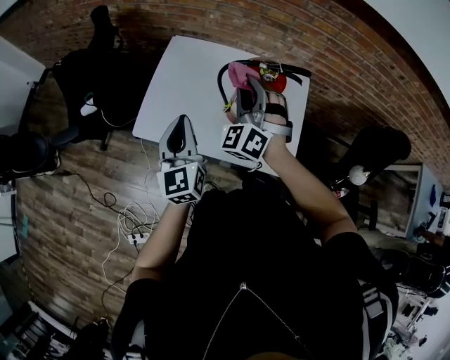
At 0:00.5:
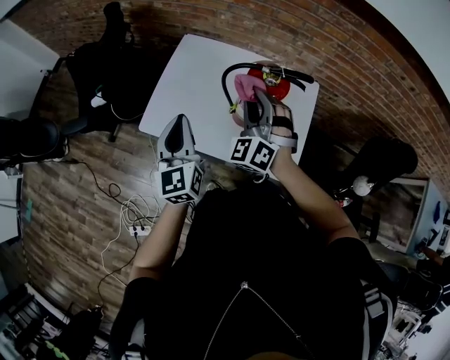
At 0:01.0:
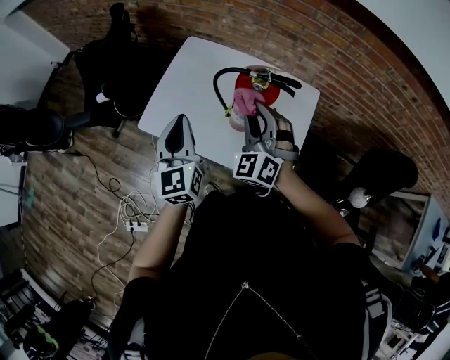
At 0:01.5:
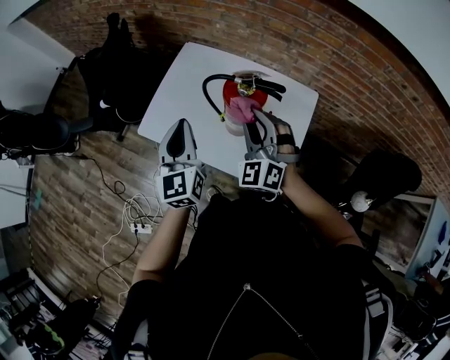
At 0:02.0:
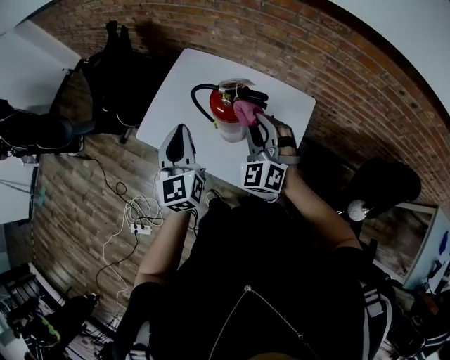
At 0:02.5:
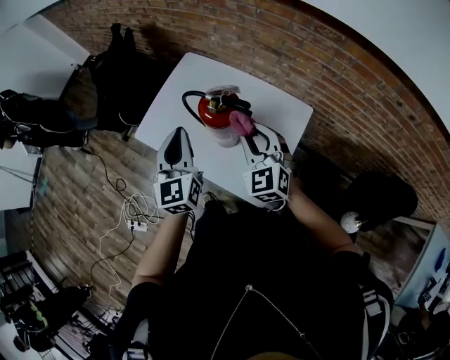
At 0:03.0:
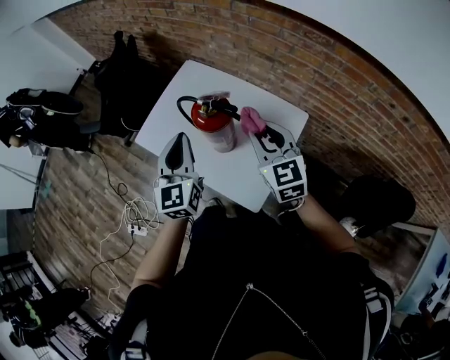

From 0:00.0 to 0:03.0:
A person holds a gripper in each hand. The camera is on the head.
From 0:00.0 to 0:01.5: Both grippers move to the right, roughly 10 cm. The right gripper swivels about 20 degrees.
From 0:01.5 to 0:03.0: The two grippers go approximately 15 cm to the right. The right gripper turns by approximately 40 degrees.

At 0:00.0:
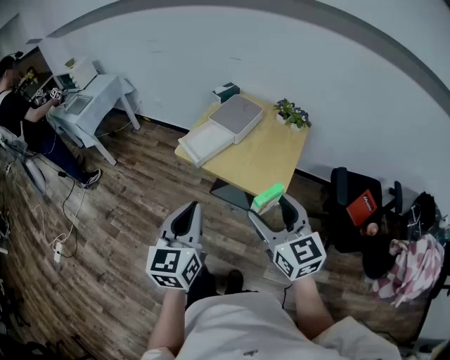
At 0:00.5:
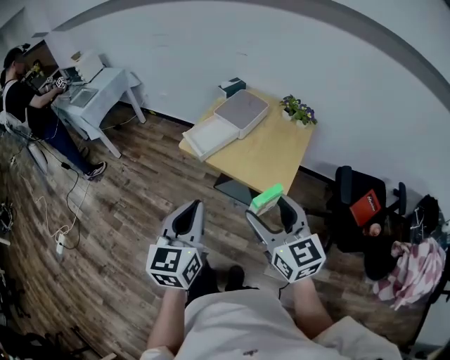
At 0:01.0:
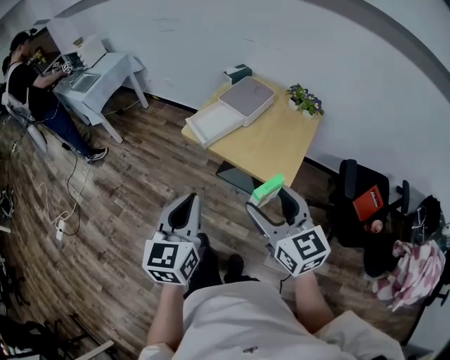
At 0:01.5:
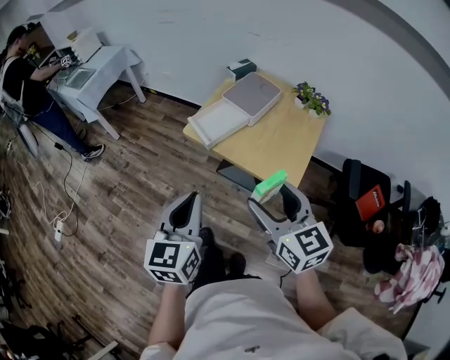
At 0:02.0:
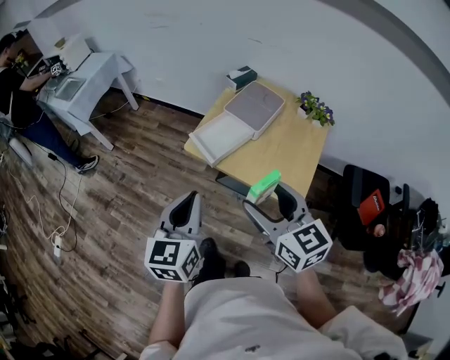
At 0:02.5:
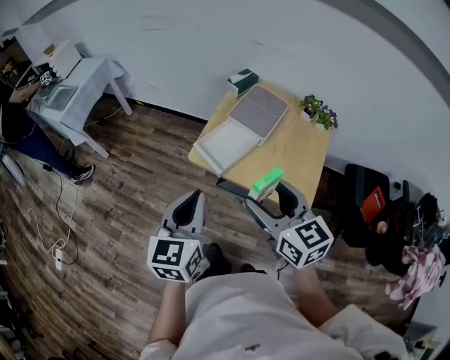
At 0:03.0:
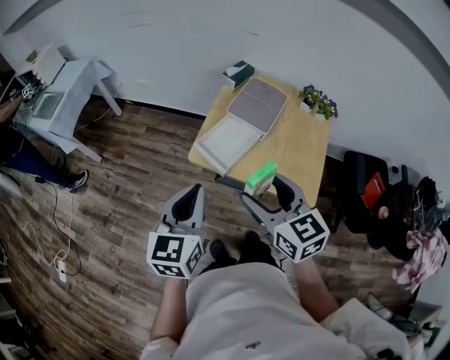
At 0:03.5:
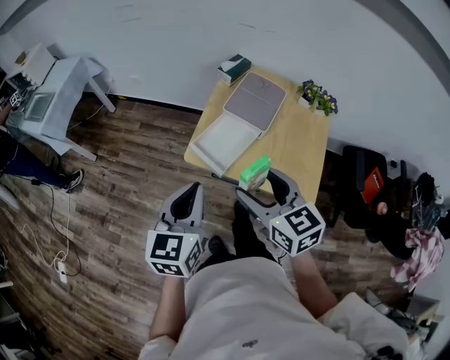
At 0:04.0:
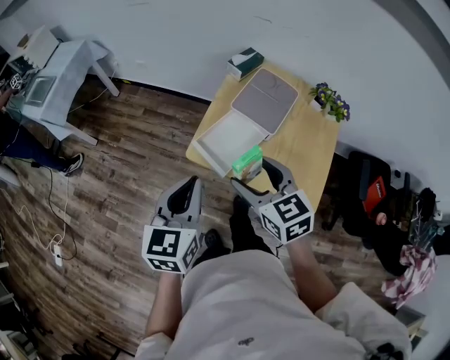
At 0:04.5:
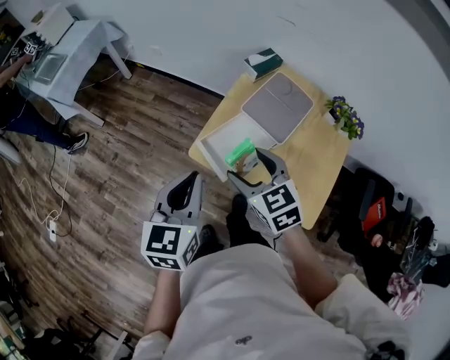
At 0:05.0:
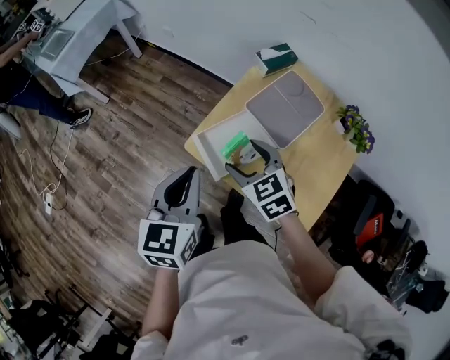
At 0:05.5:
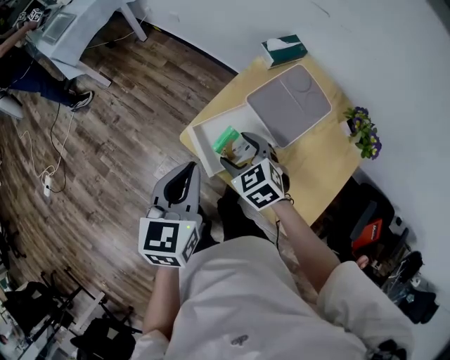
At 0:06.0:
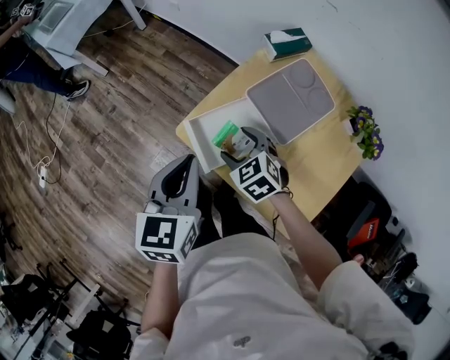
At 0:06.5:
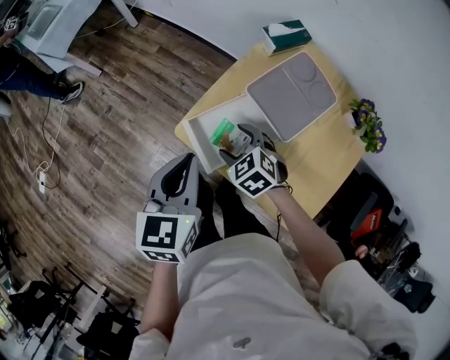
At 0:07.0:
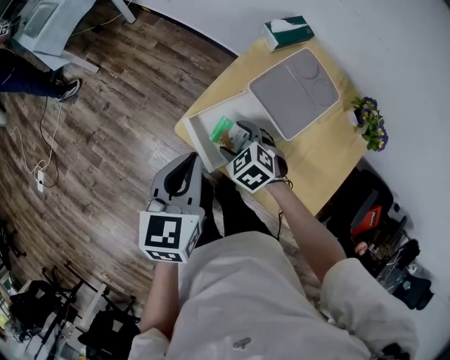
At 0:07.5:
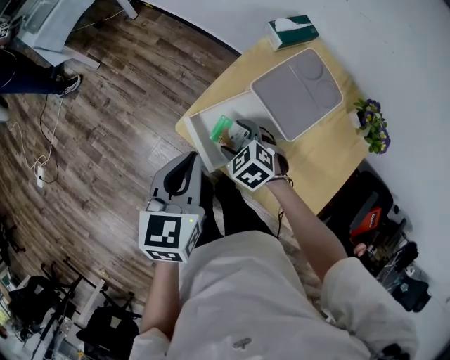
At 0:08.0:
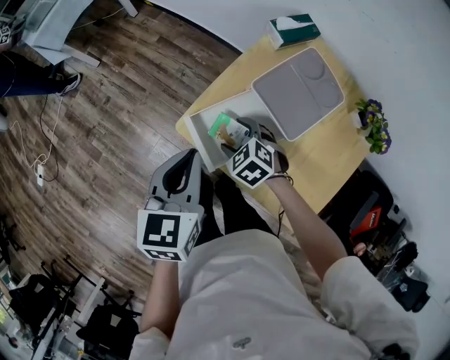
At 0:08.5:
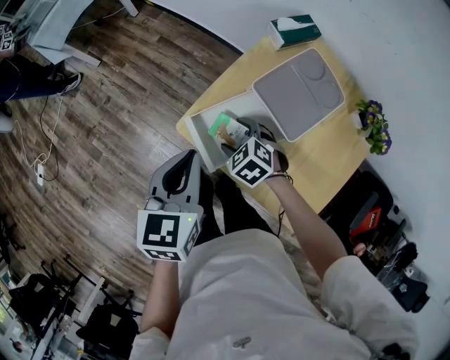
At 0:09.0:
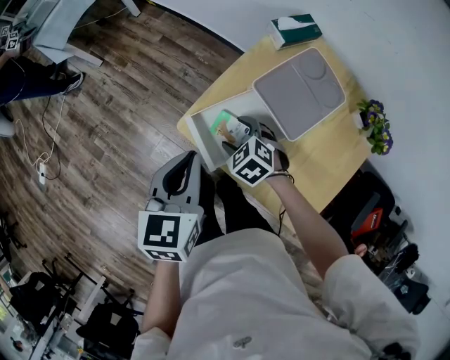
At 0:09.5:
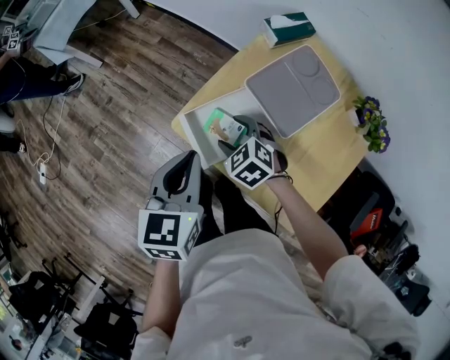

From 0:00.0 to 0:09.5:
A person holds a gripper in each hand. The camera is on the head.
From 0:00.0 to 0:02.0: Both grippers travel together forward and to the left, roughly 15 cm.
From 0:02.0 to 0:04.0: The right gripper shifts some 20 cm forward, downward and to the left; the left gripper is displaced forward by approximately 15 cm.
From 0:04.0 to 0:05.5: The right gripper travels downward and forward by about 20 cm, and rotates some 30 degrees; the left gripper shifts roughly 10 cm to the right and forward, and swivels approximately 20 degrees.
From 0:05.5 to 0:07.5: The right gripper travels downward by roughly 10 cm; the left gripper moves some 5 cm.
From 0:07.5 to 0:09.5: The grippers stay close to where they were, moving slightly.

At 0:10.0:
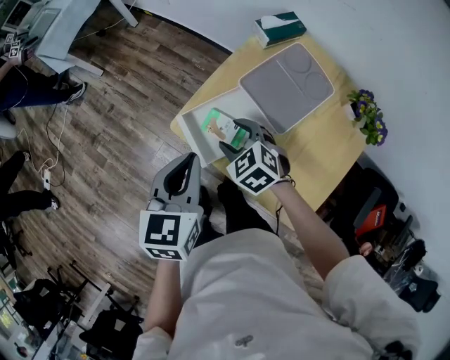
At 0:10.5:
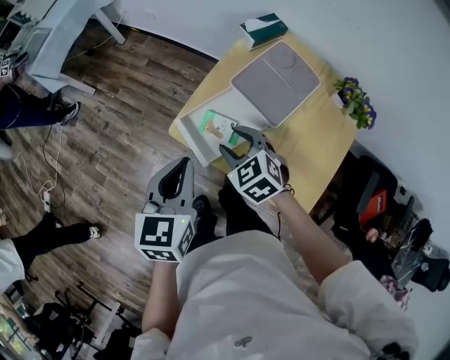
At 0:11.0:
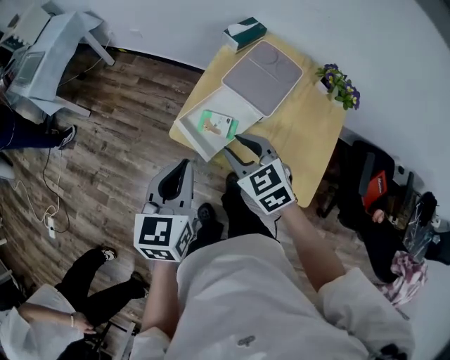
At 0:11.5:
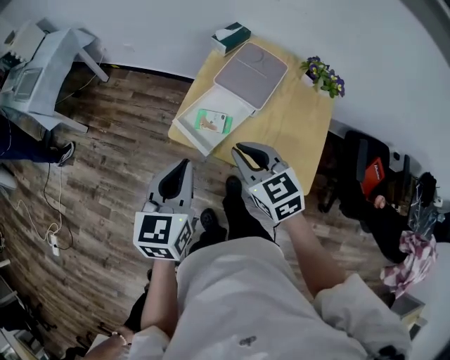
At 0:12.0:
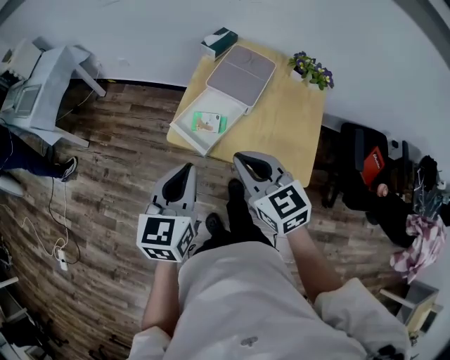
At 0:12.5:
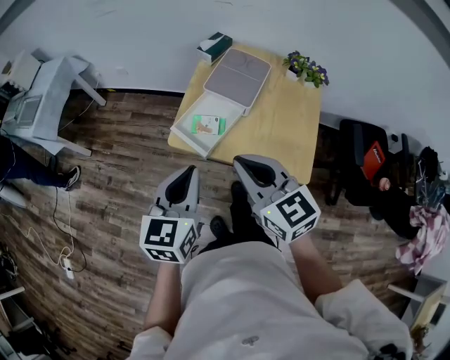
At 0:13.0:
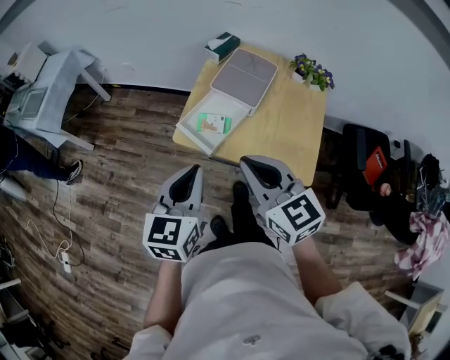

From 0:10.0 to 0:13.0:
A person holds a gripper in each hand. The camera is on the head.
From 0:10.0 to 0:11.5: The right gripper moves upward and backward, about 20 cm, rotates approximately 40 degrees, and closes up, while the left gripper heads backward and upward, covering roughly 10 cm, and turns by approximately 20 degrees.
From 0:11.5 to 0:13.0: The right gripper shifts some 10 cm upward and backward.

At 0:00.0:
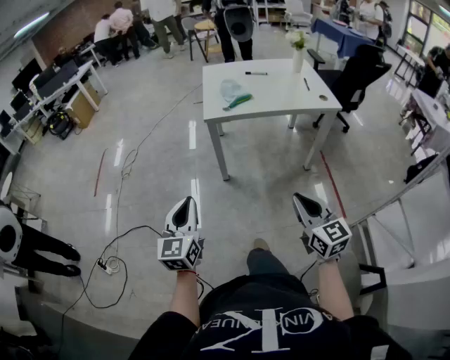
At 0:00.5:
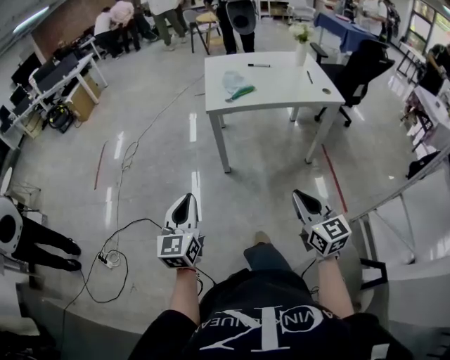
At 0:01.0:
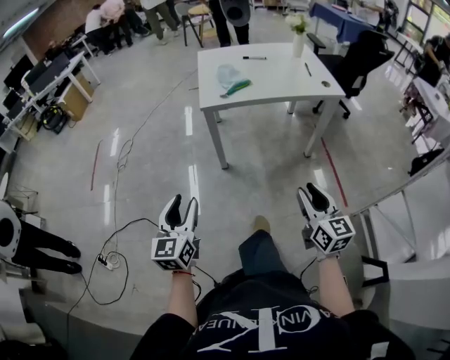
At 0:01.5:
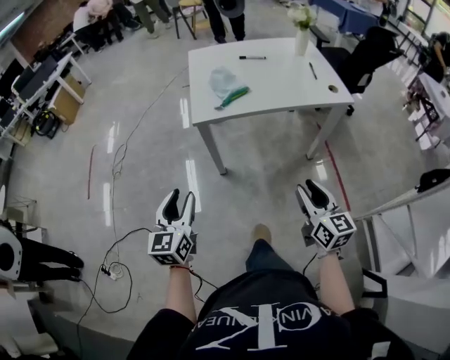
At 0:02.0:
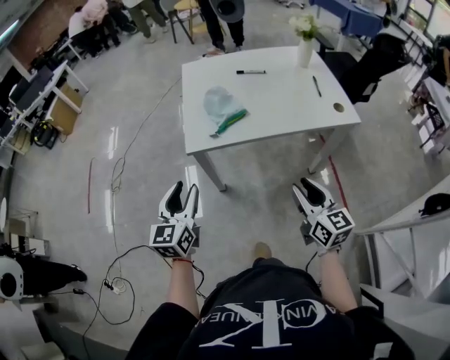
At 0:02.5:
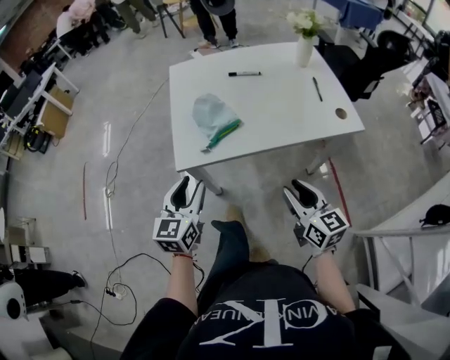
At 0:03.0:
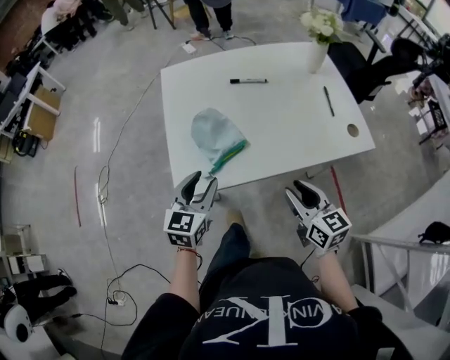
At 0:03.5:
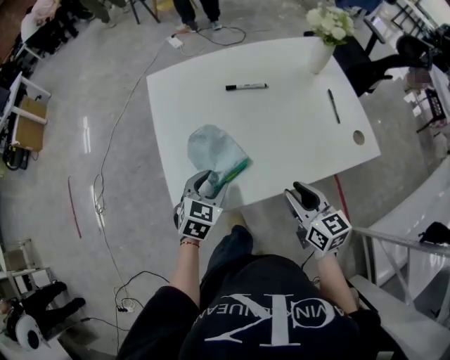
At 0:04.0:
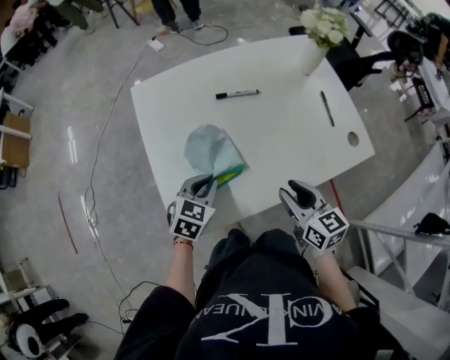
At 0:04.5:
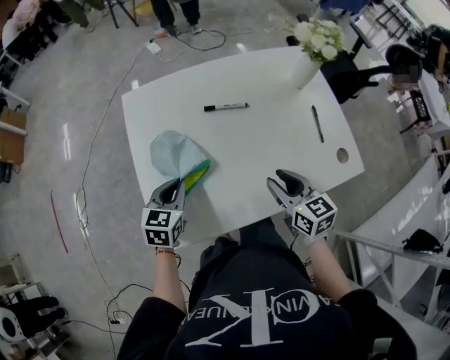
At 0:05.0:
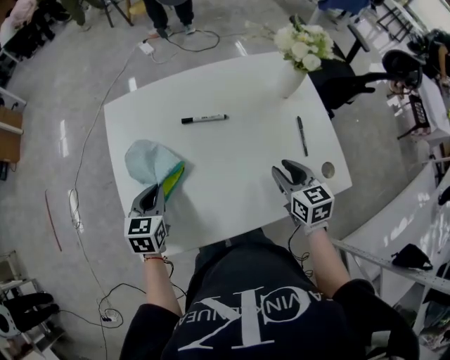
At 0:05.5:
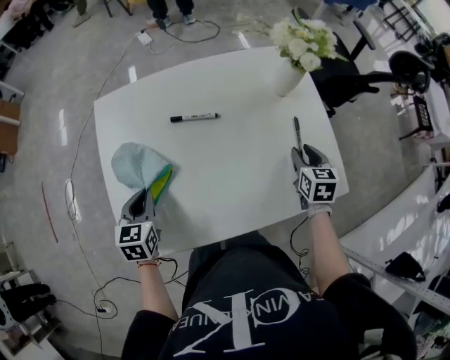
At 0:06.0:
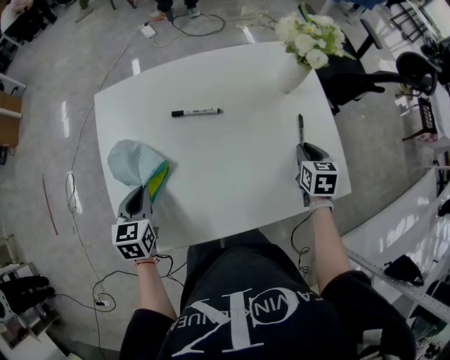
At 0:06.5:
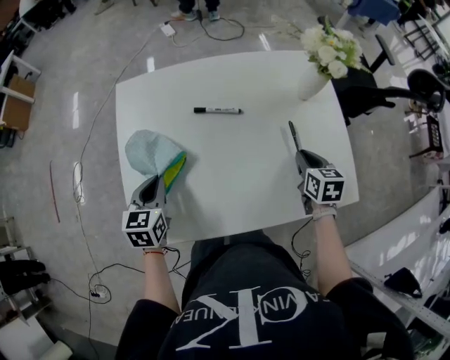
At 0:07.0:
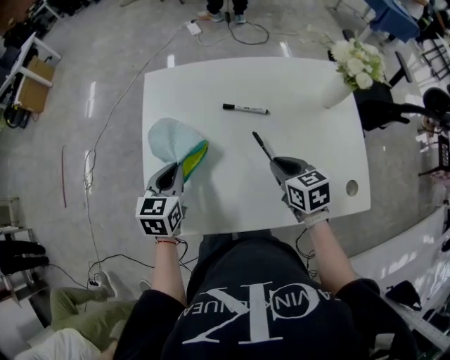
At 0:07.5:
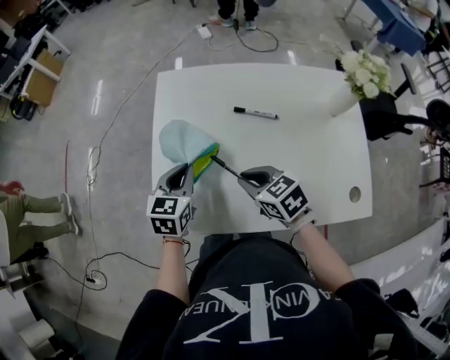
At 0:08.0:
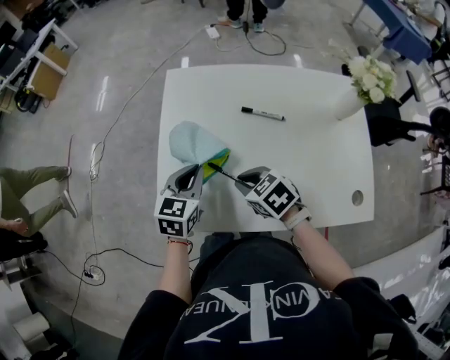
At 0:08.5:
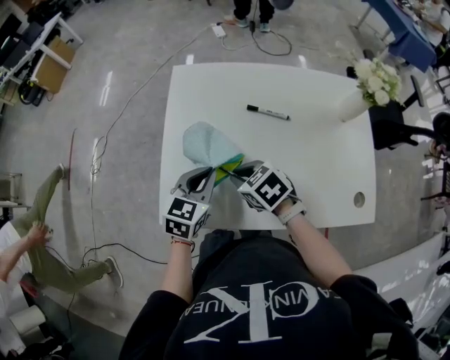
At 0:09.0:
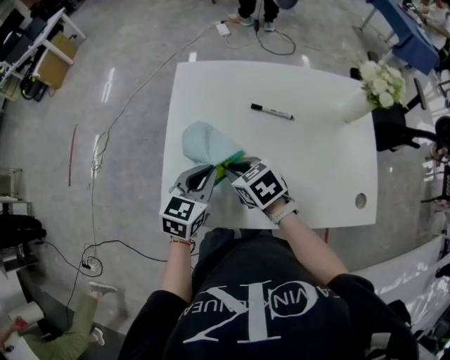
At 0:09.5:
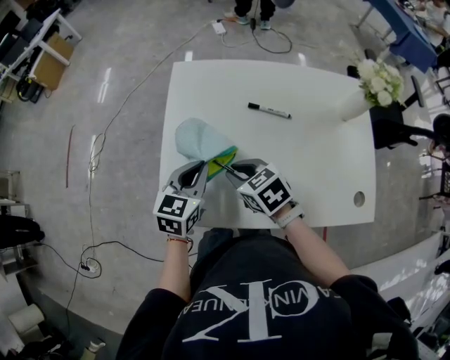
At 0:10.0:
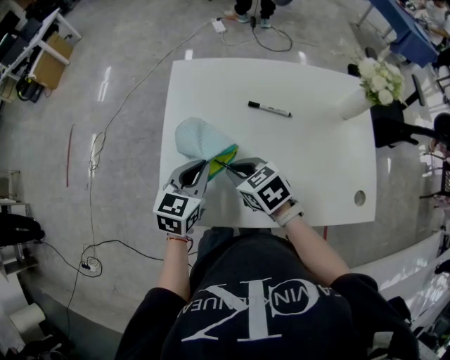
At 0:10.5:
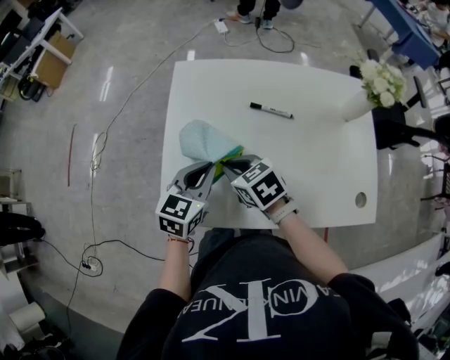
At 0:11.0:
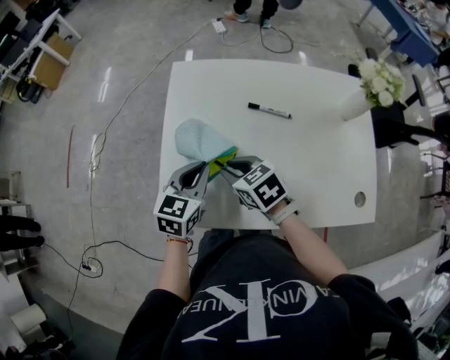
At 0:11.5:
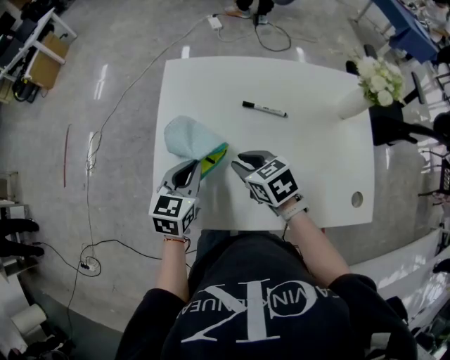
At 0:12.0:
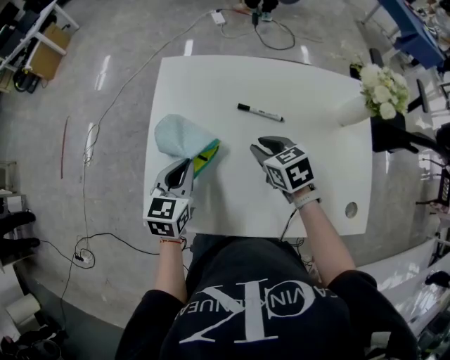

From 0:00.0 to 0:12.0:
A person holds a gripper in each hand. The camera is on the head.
From 0:00.0 to 0:02.0: The grippers both shift forward by about 30 cm. The right gripper opens. Meanwhile the left gripper opens.
From 0:02.0 to 0:04.0: The left gripper shifts some 40 cm forward and downward, angles its fingers downward, by about 30 degrees, and closes. Meanwhile the right gripper is displaced forward by about 30 cm.
From 0:04.0 to 0:06.0: The left gripper moves forward, approximately 5 cm, and turns by approximately 40 degrees. The right gripper goes some 35 cm to the right and forward, and changes its angle by some 30 degrees.
From 0:06.0 to 0:08.0: The right gripper shifts by about 40 cm, and changes its angle by about 60 degrees.
From 0:08.0 to 0:10.0: There are only small adjustments of the grippers.
From 0:10.0 to 0:12.0: The right gripper heads to the right and forward, covering some 15 cm.
